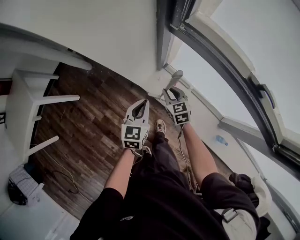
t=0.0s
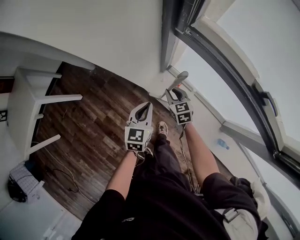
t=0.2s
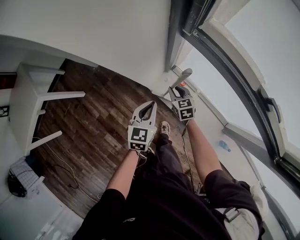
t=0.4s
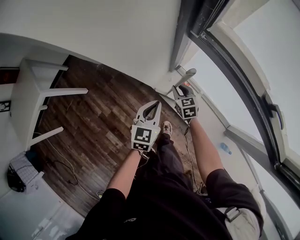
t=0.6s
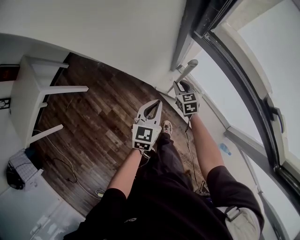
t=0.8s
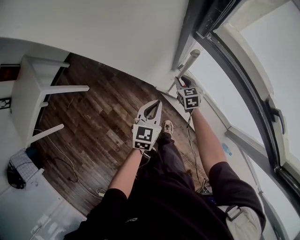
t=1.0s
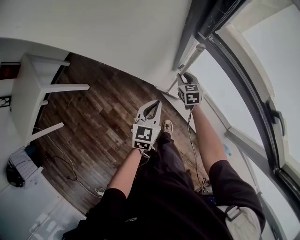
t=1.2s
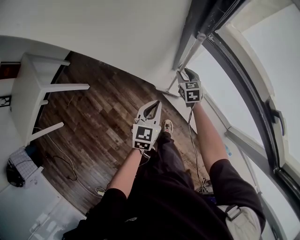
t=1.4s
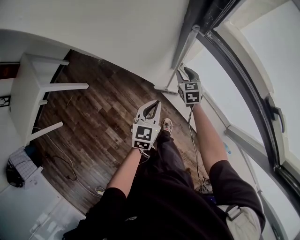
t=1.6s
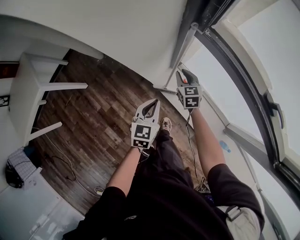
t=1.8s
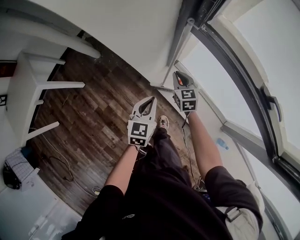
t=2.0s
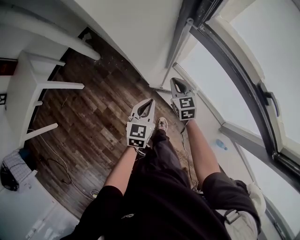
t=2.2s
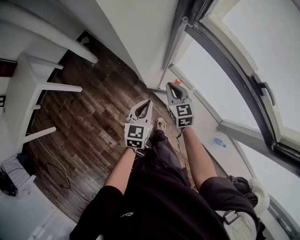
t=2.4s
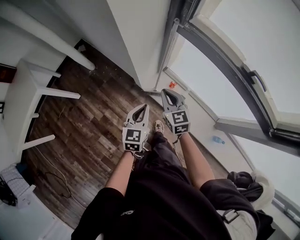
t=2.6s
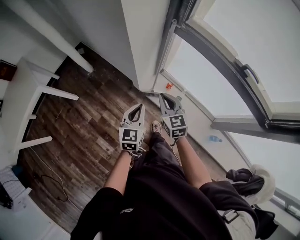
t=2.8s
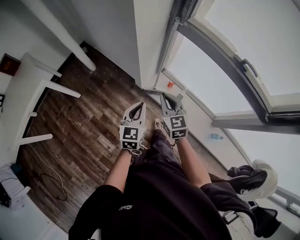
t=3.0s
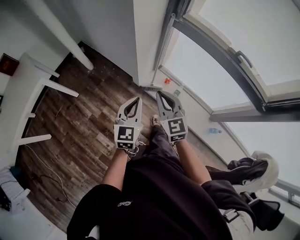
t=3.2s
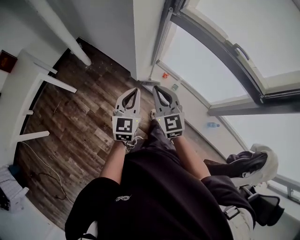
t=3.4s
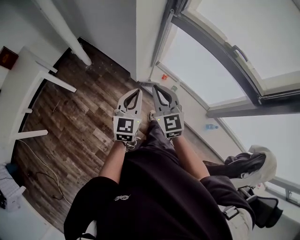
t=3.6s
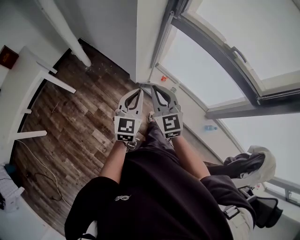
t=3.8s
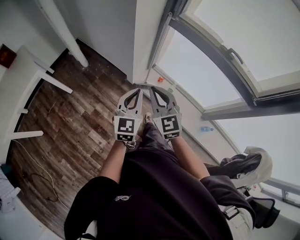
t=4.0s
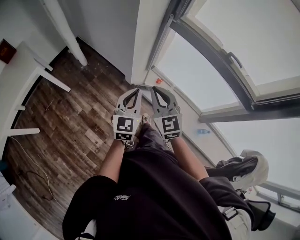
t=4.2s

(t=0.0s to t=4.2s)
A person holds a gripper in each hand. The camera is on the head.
t=0.0s - t=1.4s: The right gripper heads forward, covering roughly 15 cm.
t=1.4s - t=2.8s: The left gripper travels backward and upward by about 20 cm, while the right gripper shifts about 35 cm backward and upward, swivels approximately 20 degrees, and closes up.
t=2.8s - t=4.2s: The left gripper is displaced upward and backward by about 15 cm; the right gripper moves backward, upward and to the left, approximately 20 cm.

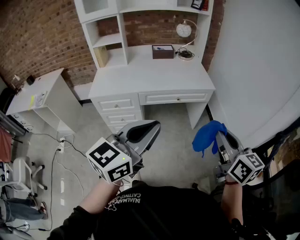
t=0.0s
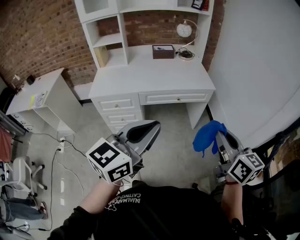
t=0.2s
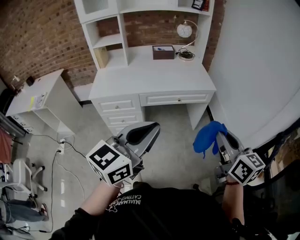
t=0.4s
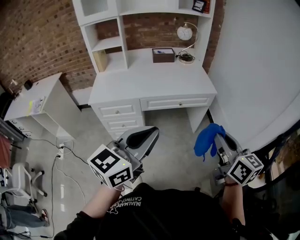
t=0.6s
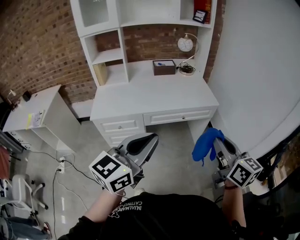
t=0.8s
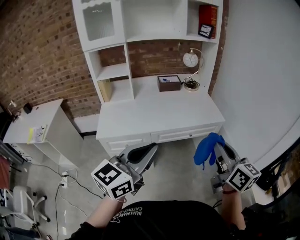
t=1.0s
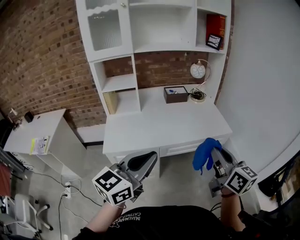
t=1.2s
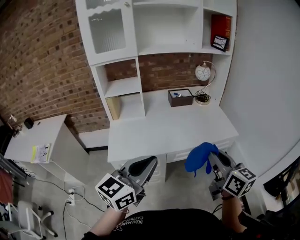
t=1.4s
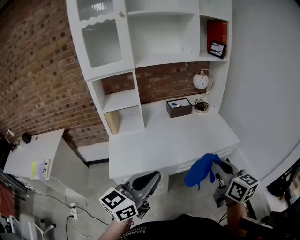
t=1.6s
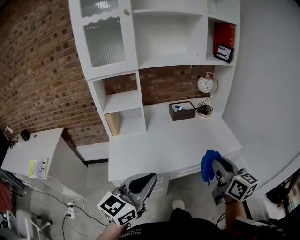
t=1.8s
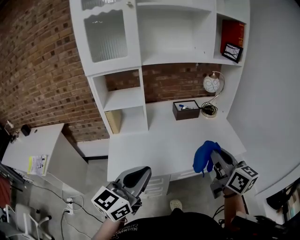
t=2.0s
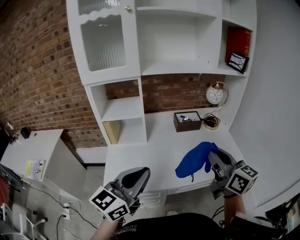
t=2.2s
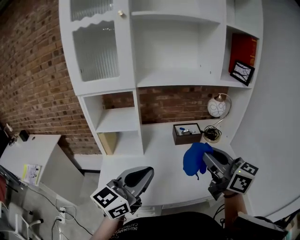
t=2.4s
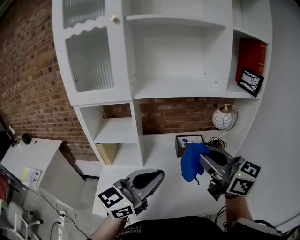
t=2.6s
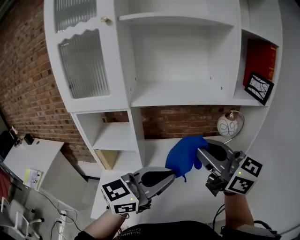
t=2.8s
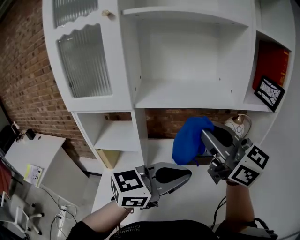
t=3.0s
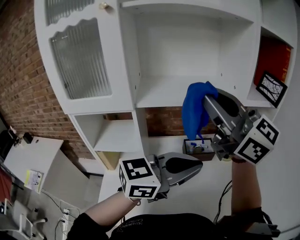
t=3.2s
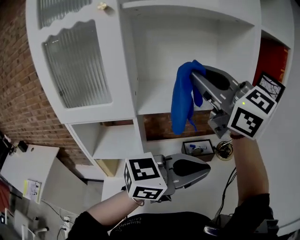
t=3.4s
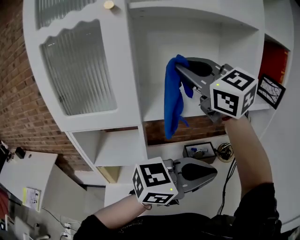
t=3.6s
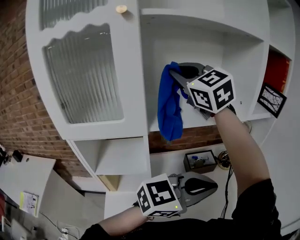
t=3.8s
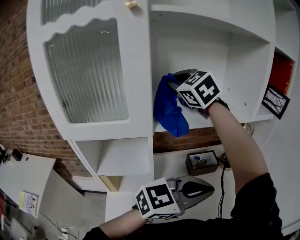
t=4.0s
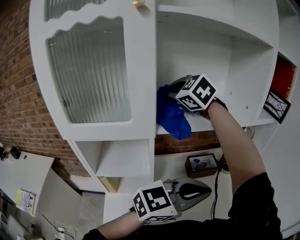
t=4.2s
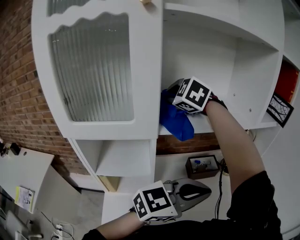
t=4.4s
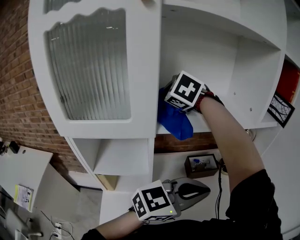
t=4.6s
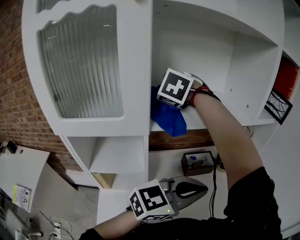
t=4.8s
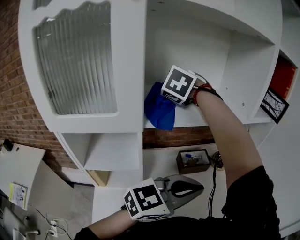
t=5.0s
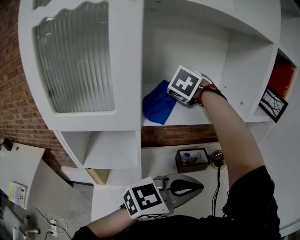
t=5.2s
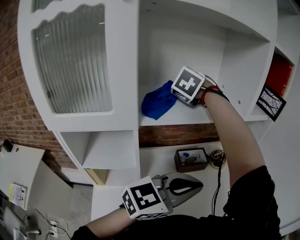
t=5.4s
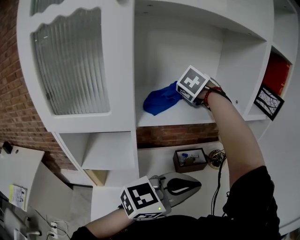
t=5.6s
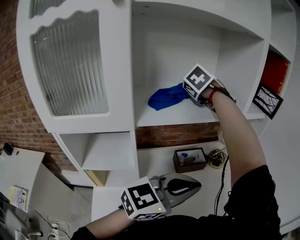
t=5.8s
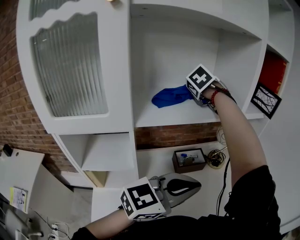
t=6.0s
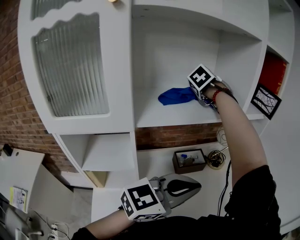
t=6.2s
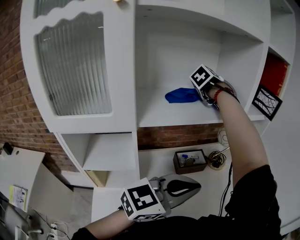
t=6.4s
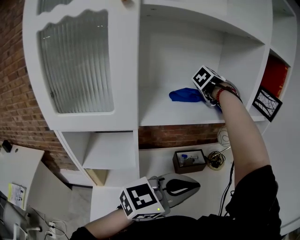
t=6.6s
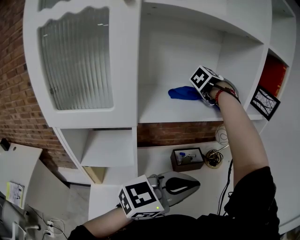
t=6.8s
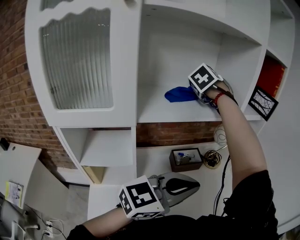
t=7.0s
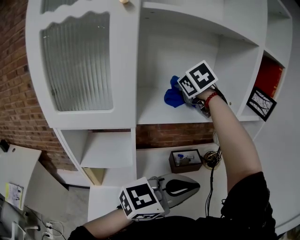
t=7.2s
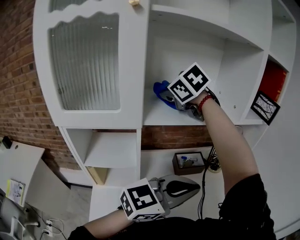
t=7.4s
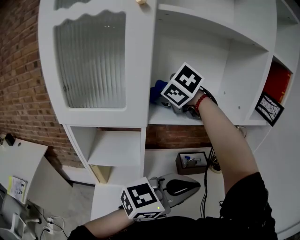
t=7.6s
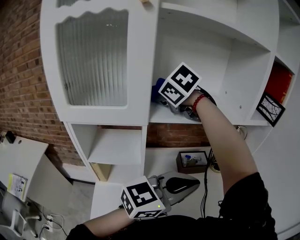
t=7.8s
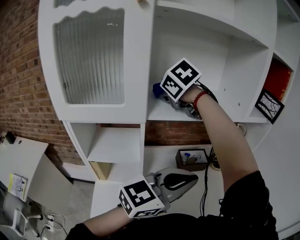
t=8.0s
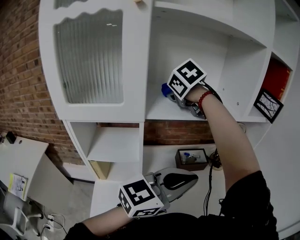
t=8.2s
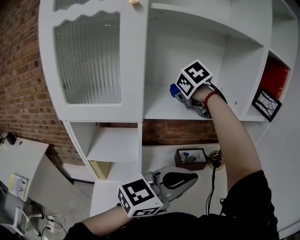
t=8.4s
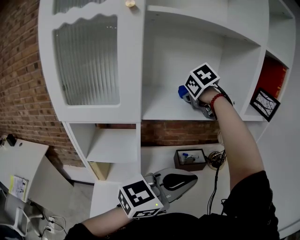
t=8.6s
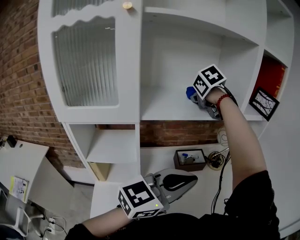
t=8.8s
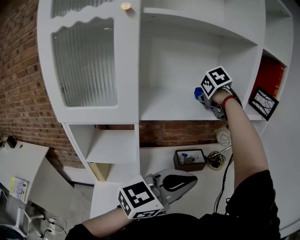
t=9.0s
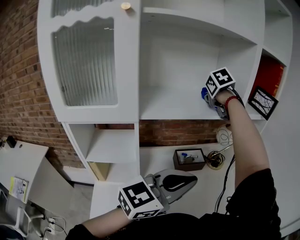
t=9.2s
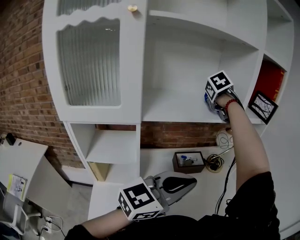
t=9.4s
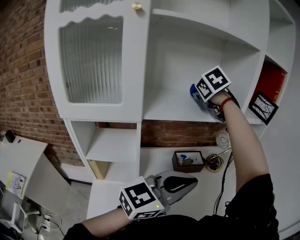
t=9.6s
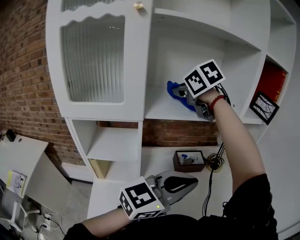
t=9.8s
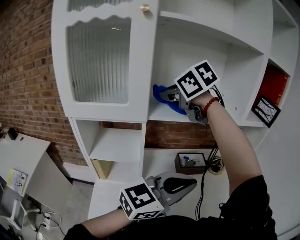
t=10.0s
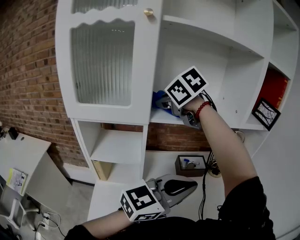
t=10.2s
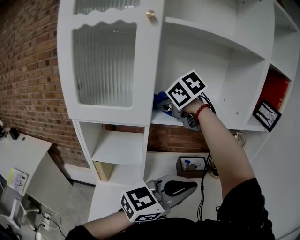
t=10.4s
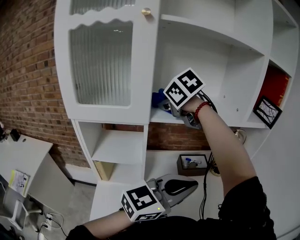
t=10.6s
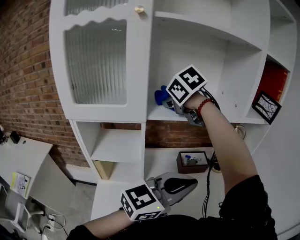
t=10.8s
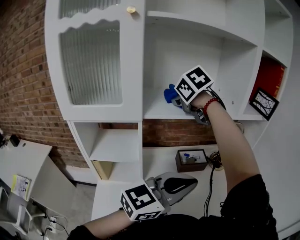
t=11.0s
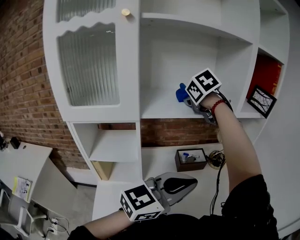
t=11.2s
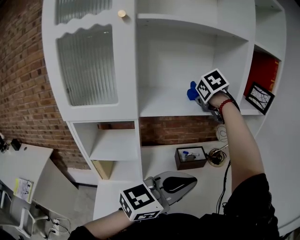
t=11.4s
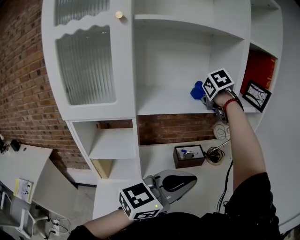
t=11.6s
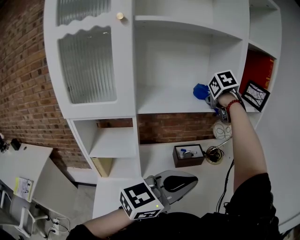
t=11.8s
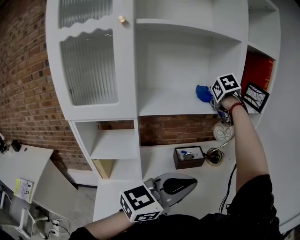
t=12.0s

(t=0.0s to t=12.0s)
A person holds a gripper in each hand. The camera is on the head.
t=0.0s - t=1.6s: The two grippers go roughly 35 cm to the left and forward.
t=1.6s - t=3.0s: The left gripper travels forward by roughly 35 cm. The right gripper is displaced forward and upward by some 50 cm, and swivels about 50 degrees.
t=3.0s - t=4.4s: The right gripper reaches roughly 15 cm upward, then returns, and angles its fingers downward, by approximately 50 degrees. The left gripper shifts by about 5 cm.
t=4.4s - t=6.0s: The right gripper travels forward and to the right by about 25 cm, and rotates about 50 degrees.
t=6.0s - t=7.6s: The right gripper shifts by approximately 25 cm, and changes its angle by some 40 degrees.
t=7.6s - t=9.0s: The right gripper shifts some 25 cm to the right and forward, and swivels roughly 40 degrees.
t=9.0s - t=10.4s: The right gripper changes place by roughly 25 cm, and rotates about 30 degrees.
t=10.4s - t=12.0s: The right gripper moves to the right and forward, some 30 cm, and swivels roughly 50 degrees. The left gripper changes place by approximately 5 cm.

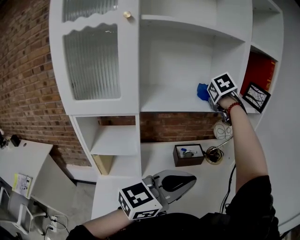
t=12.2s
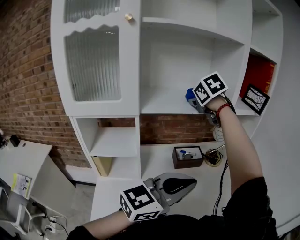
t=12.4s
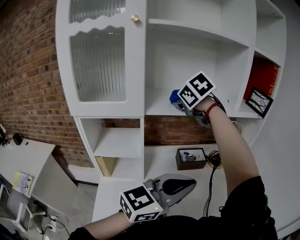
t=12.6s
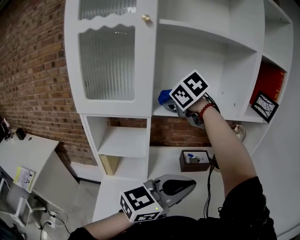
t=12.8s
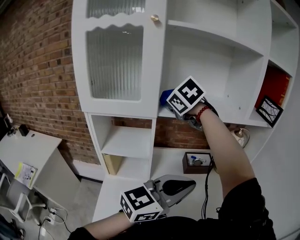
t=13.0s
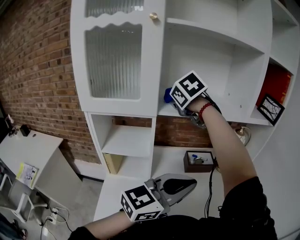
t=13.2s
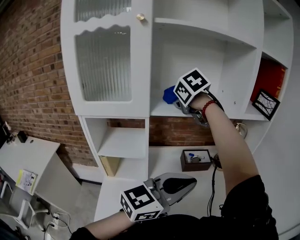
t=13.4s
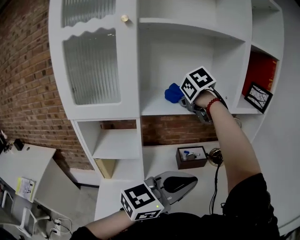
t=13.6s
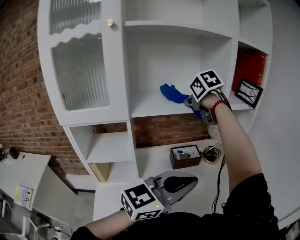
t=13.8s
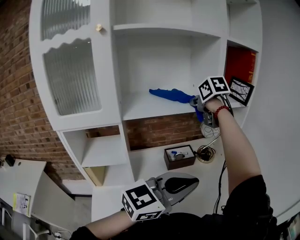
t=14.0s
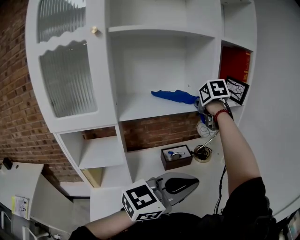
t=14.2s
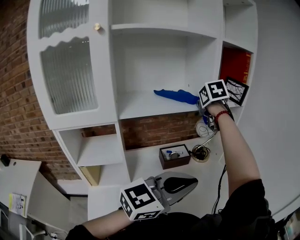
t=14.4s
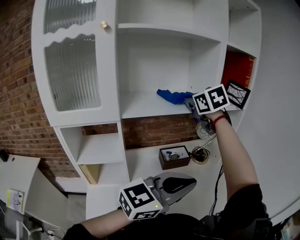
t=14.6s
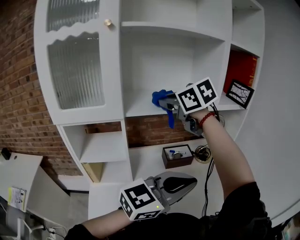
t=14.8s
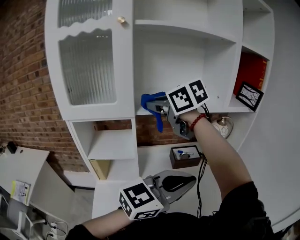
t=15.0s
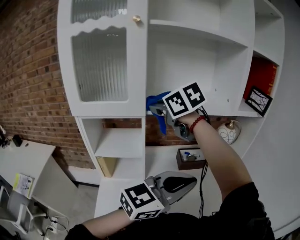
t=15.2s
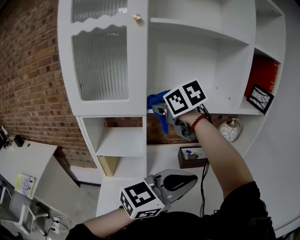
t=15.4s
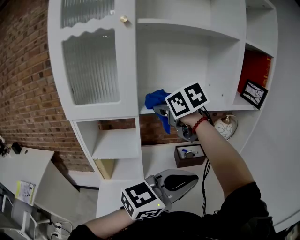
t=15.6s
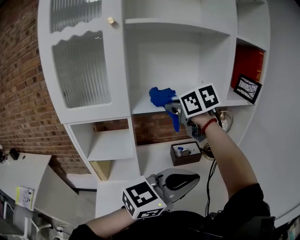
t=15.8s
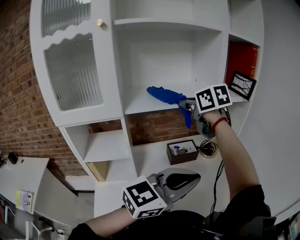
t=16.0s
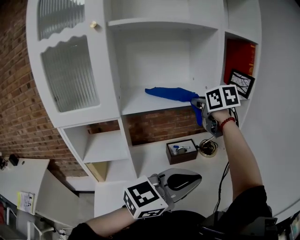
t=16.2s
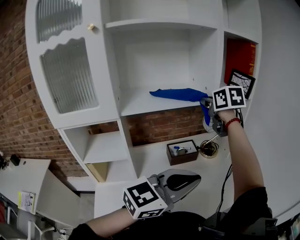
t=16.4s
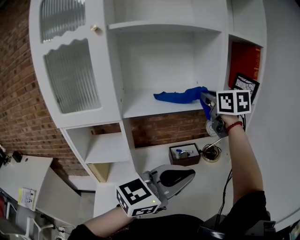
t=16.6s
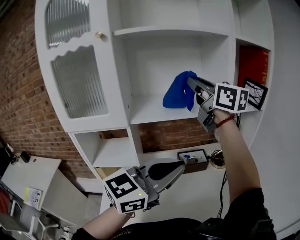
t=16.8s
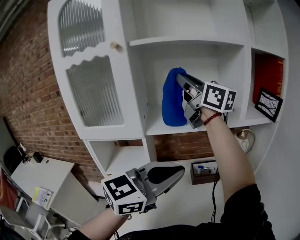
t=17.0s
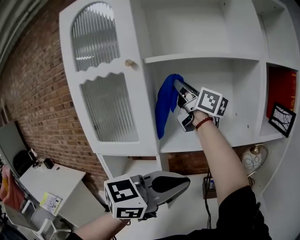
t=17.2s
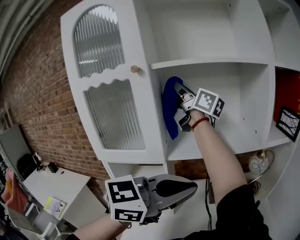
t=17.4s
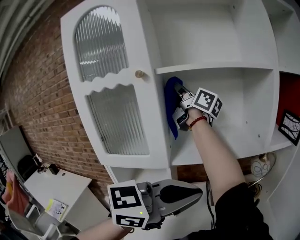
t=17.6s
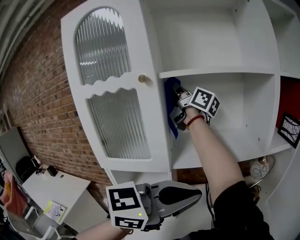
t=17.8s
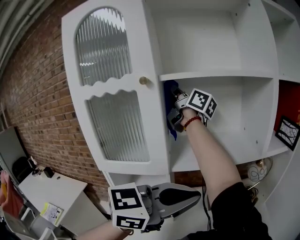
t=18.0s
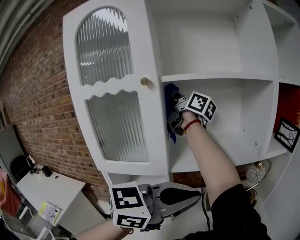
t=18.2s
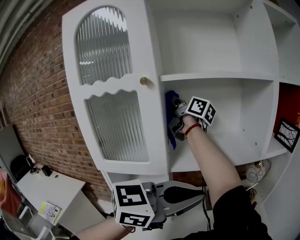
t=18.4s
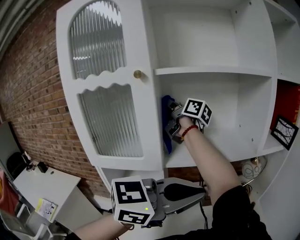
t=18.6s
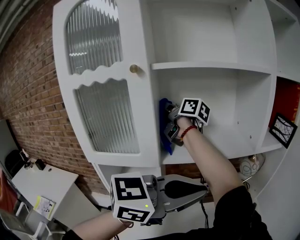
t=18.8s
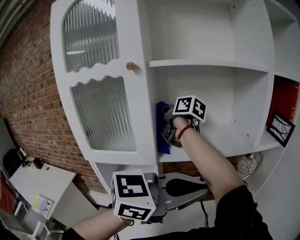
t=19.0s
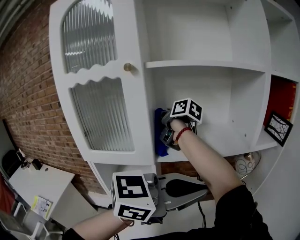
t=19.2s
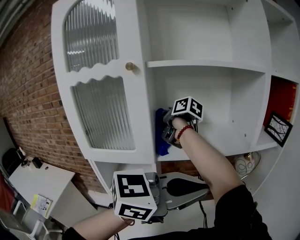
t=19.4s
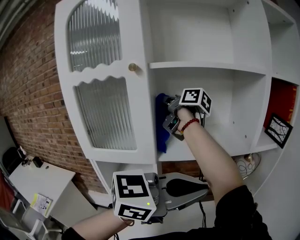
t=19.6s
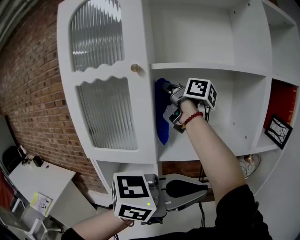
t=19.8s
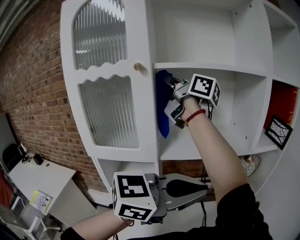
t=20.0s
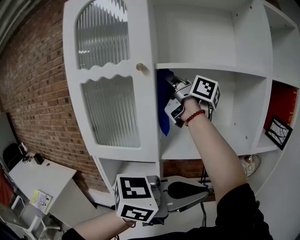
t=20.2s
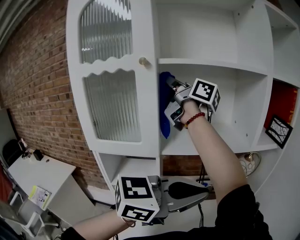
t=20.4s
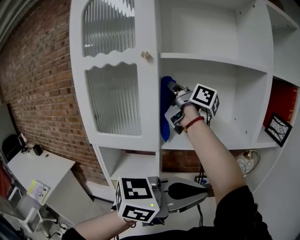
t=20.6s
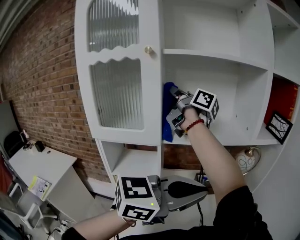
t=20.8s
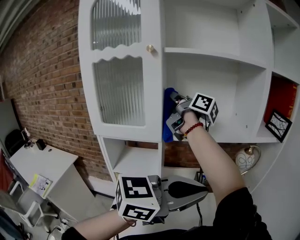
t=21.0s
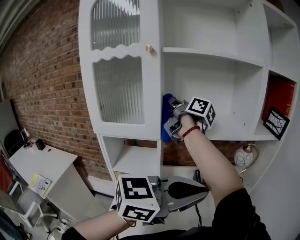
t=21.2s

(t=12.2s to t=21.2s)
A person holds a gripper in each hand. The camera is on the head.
t=12.2s - t=13.8s: The right gripper goes to the left and returns, approximately 25 cm each way, and swivels some 20 degrees.
t=13.8s - t=15.2s: The right gripper shifts by approximately 25 cm, and turns by about 30 degrees.
t=15.2s - t=16.6s: The right gripper is displaced to the right and forward by approximately 30 cm, and swivels roughly 40 degrees. The left gripper ends up approximately 5 cm from where it was.
t=16.6s - t=18.2s: The left gripper shifts approximately 20 cm upward, to the left and forward. The right gripper shifts about 40 cm to the left and upward, and tips its fingers upward by roughly 40 degrees.
t=18.2s - t=19.8s: The left gripper travels to the right by about 5 cm; the right gripper travels backward by roughly 5 cm, and moves some 15 cm downward and comes back.
t=19.8s - t=21.2s: The right gripper shifts roughly 15 cm downward; the left gripper changes place by some 10 cm.
